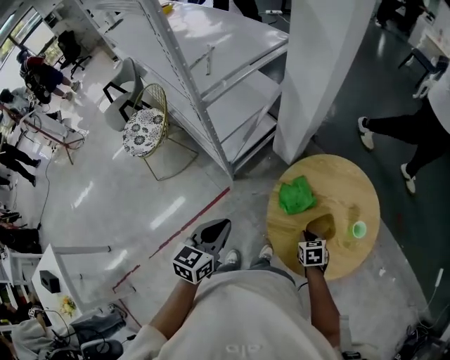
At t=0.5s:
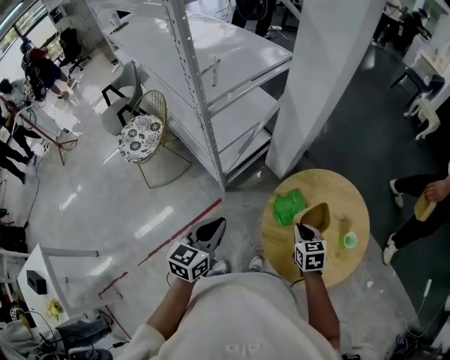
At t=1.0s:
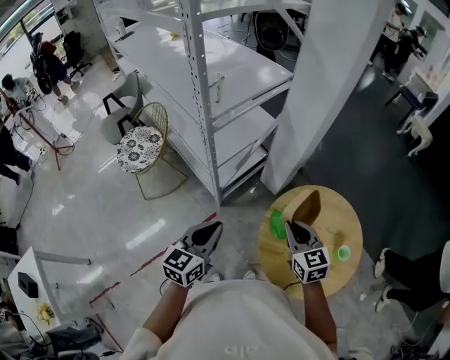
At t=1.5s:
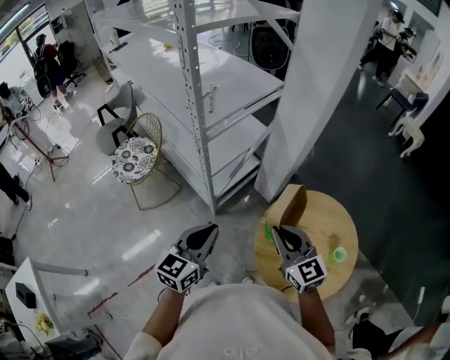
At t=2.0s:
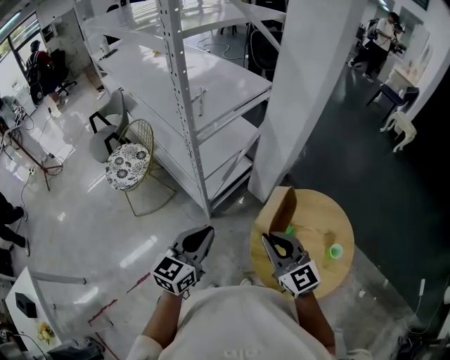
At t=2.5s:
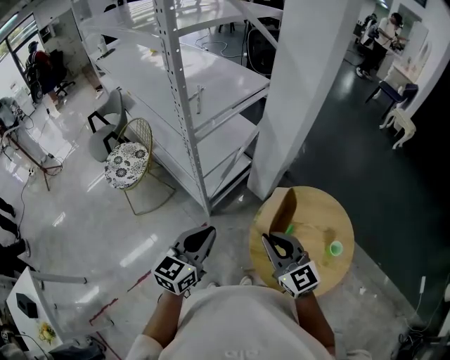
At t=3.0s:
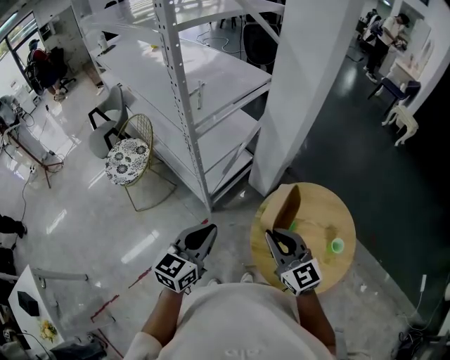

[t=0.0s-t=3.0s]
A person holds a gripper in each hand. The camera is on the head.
t=0.0s to t=1.5s: The left gripper goes some 10 cm upward. Meanwhile the right gripper travels upward and to the left by approximately 35 cm, and points its fingers roughly 50 degrees further upward.
t=1.5s to t=3.0s: The grippers make only small movements.

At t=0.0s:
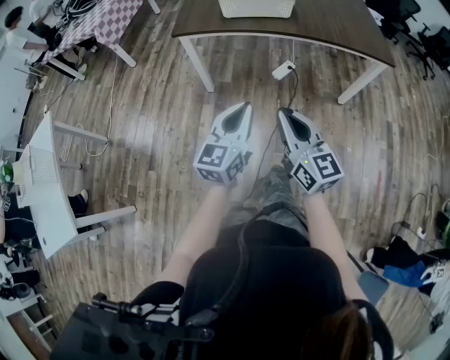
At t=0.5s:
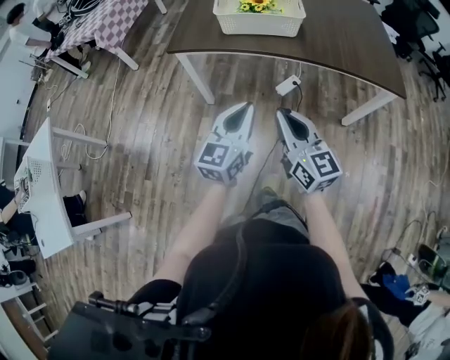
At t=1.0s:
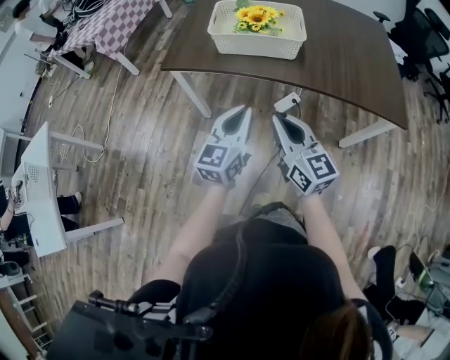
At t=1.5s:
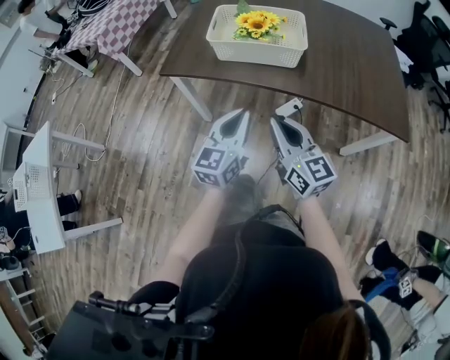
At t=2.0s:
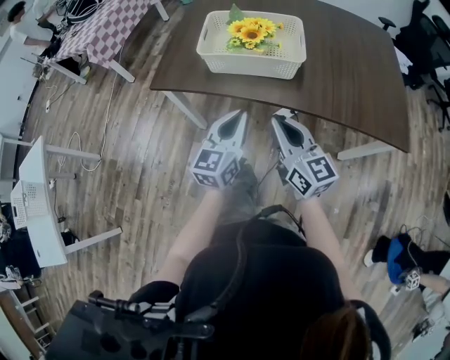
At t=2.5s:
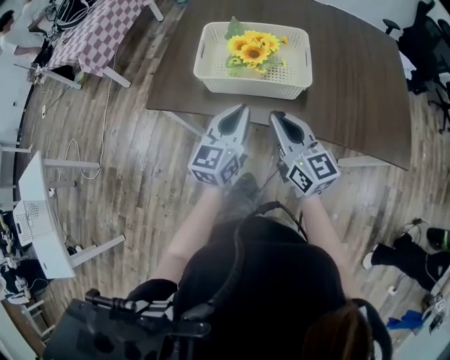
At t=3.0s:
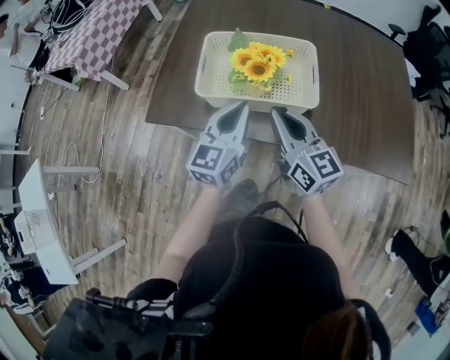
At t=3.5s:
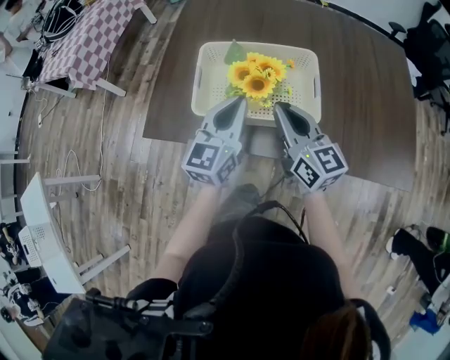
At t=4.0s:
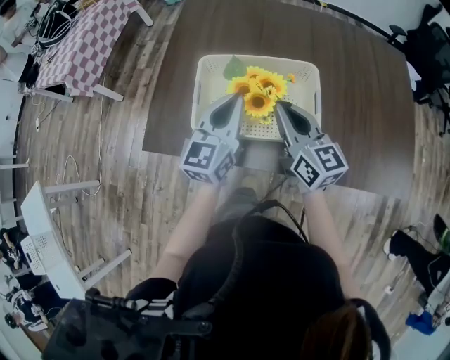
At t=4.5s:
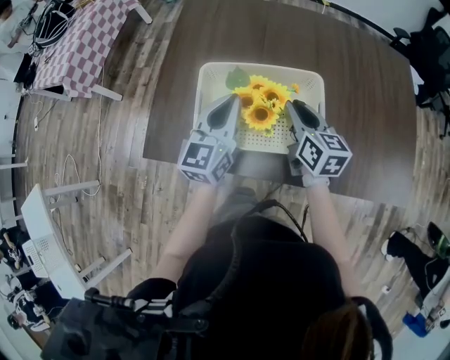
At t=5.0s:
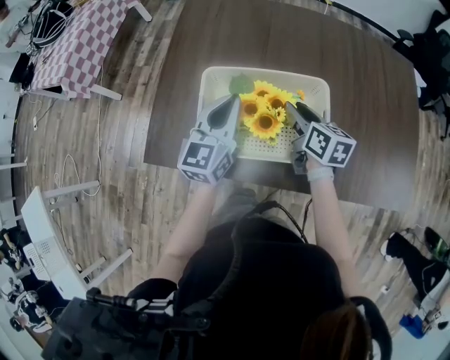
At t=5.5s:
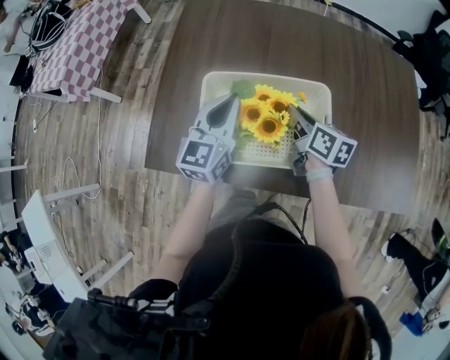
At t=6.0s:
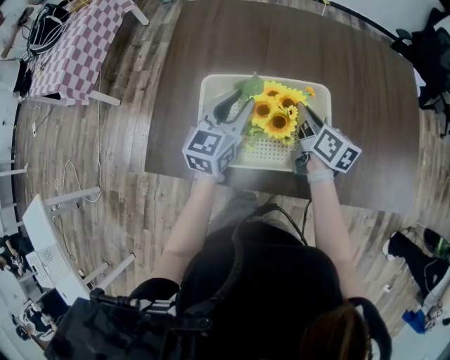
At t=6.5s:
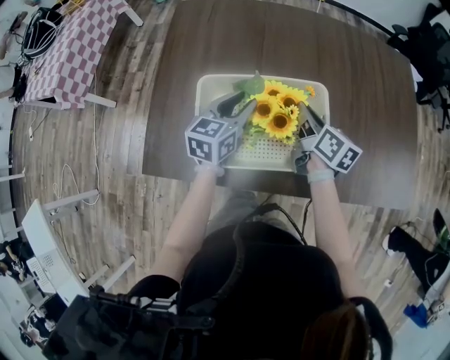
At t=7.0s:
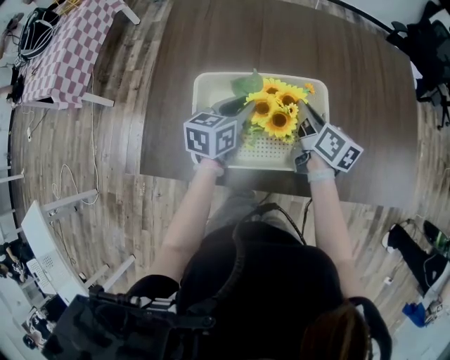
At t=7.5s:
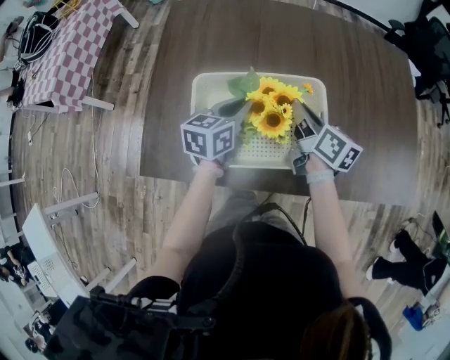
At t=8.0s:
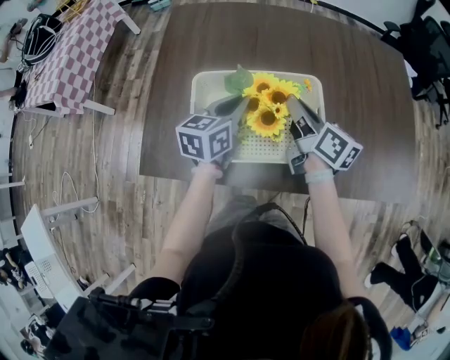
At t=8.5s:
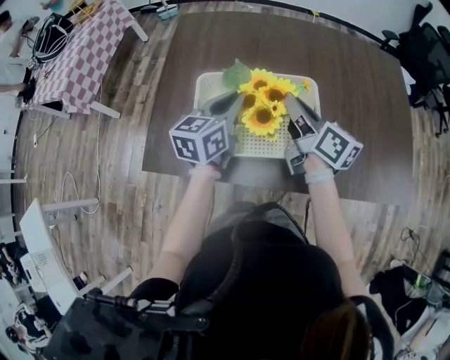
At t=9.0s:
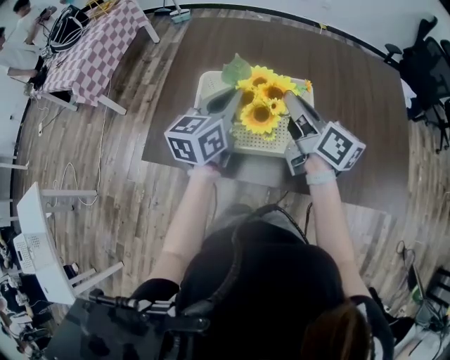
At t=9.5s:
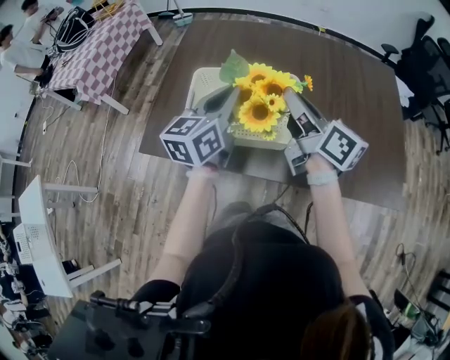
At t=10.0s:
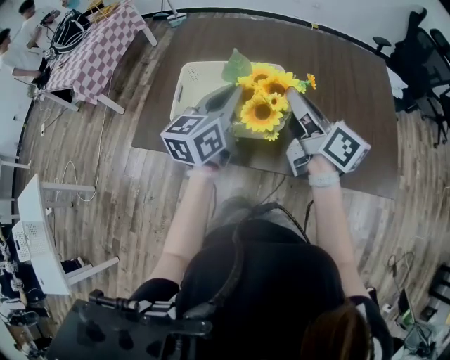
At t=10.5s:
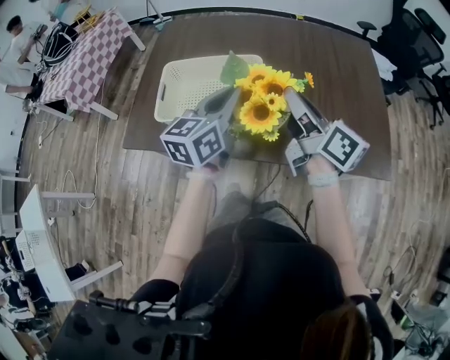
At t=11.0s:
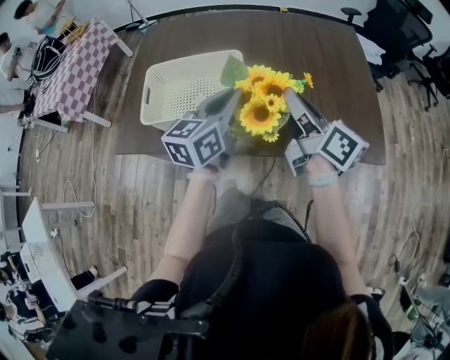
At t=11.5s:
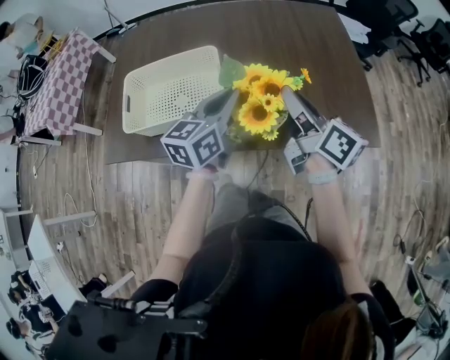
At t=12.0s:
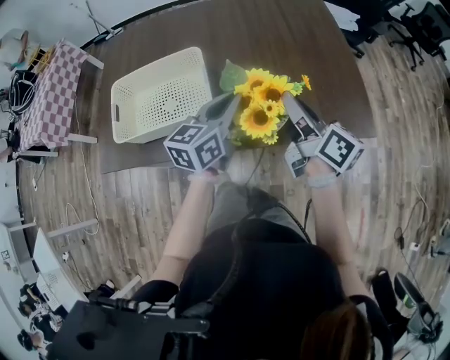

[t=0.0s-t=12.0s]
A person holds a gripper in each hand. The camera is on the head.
t=0.0s to t=2.0s: The grippers both shift forward by approximately 35 cm.
t=2.0s to t=4.0s: Both grippers move forward, some 25 cm.
t=4.0s to t=6.0s: The left gripper shifts about 10 cm forward, and opens up. The right gripper heads forward and downward, covering some 15 cm, rotates about 30 degrees, and opens and closes again.
t=6.0s to t=8.0s: The left gripper closes its fingers.
t=8.0s to t=10.0s: Both grippers travel together upward, backward and to the right, approximately 20 cm.
t=10.0s to t=12.0s: The two grippers go approximately 20 cm to the right.

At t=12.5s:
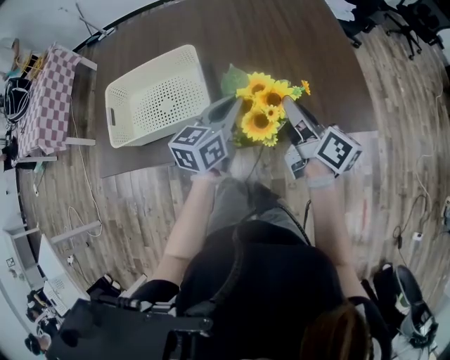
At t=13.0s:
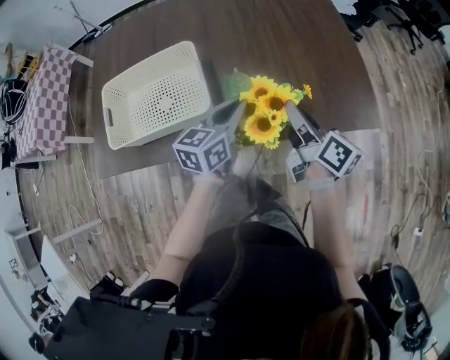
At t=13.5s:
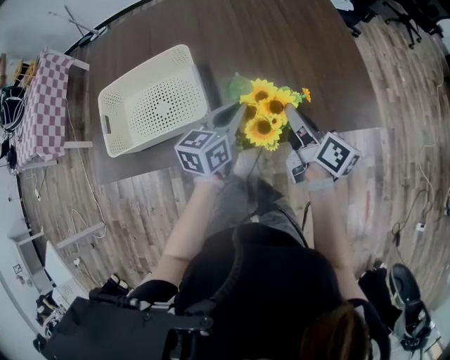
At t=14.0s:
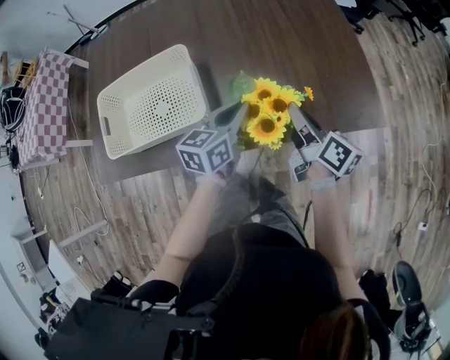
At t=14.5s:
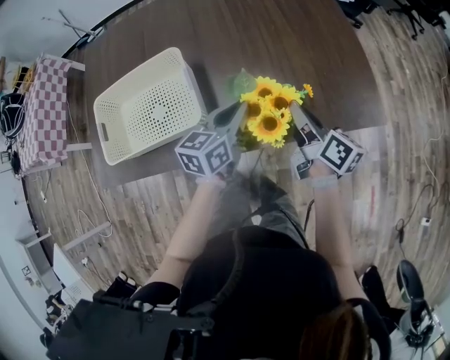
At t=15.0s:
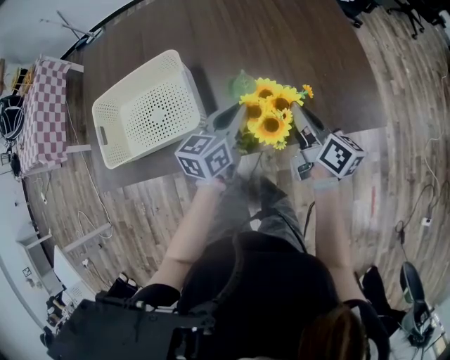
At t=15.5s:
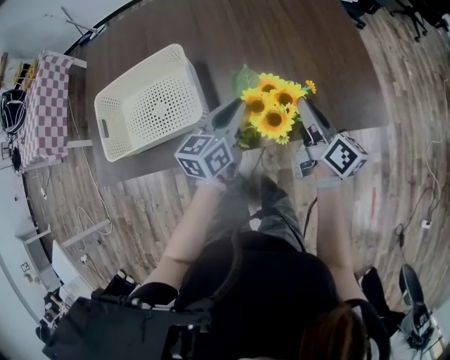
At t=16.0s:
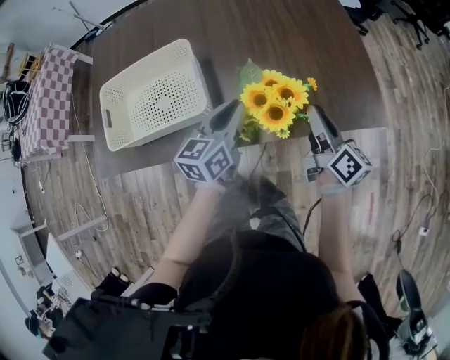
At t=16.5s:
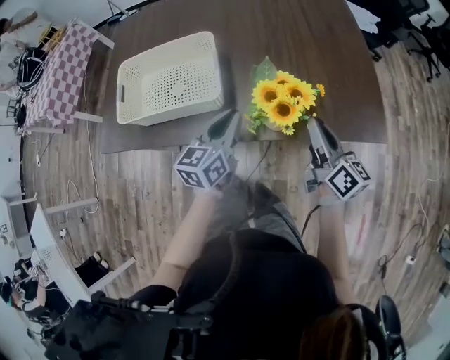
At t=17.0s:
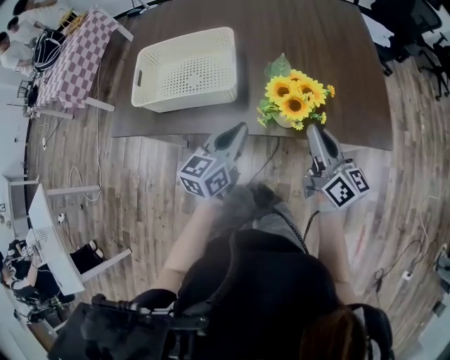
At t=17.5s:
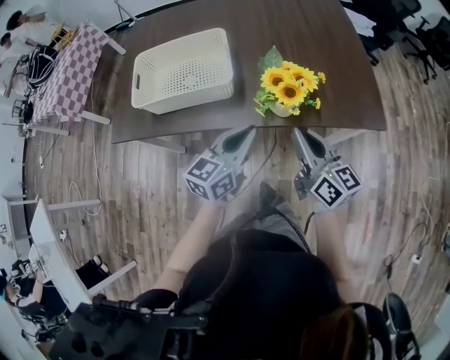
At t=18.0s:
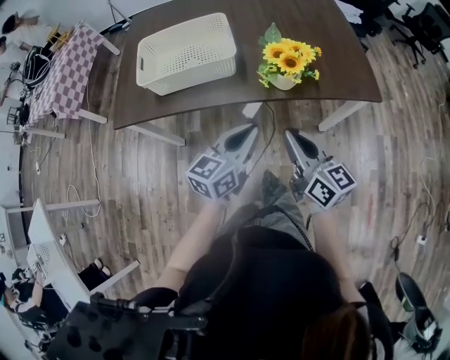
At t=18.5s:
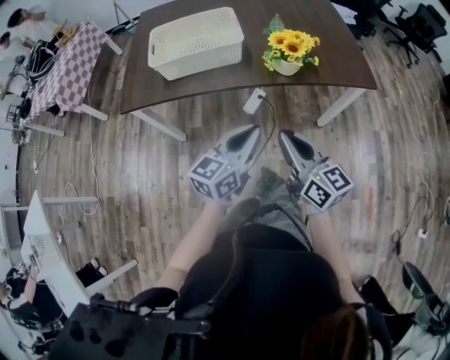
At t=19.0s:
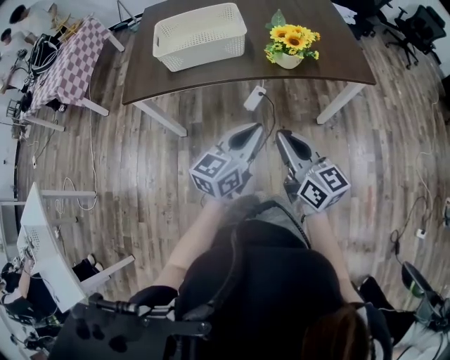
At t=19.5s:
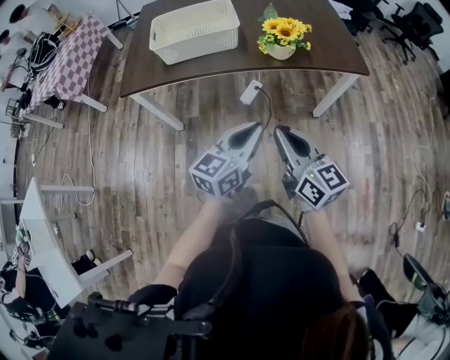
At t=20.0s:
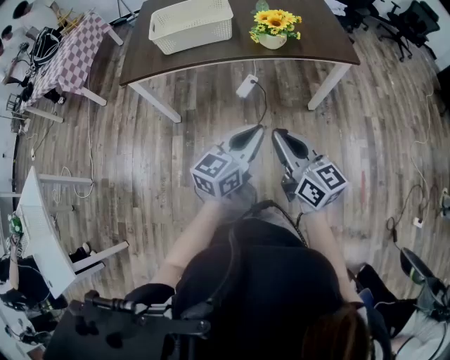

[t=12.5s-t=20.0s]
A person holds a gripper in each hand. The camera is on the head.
t=12.5s to t=14.5s: The grippers both shift downward by some 5 cm.
t=14.5s to t=16.5s: The right gripper travels backward by roughly 5 cm, while the left gripper travels backward and to the left by roughly 10 cm.
t=16.5s to t=18.0s: The right gripper heads backward and to the left, covering roughly 20 cm; the left gripper goes approximately 20 cm backward.
t=18.0s to t=20.0s: Both grippers travel together backward, some 25 cm.

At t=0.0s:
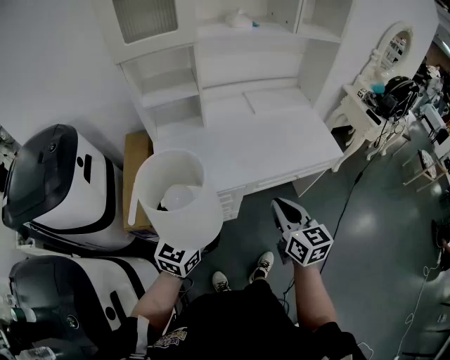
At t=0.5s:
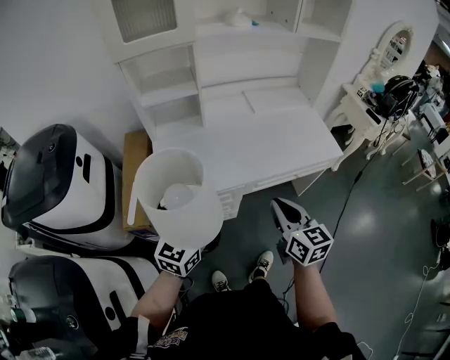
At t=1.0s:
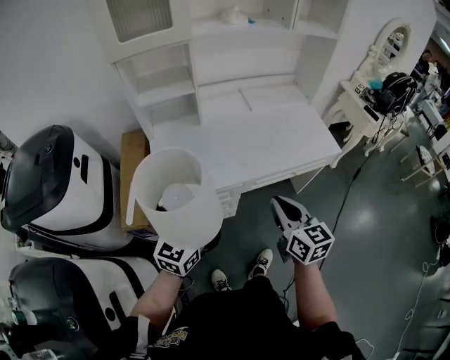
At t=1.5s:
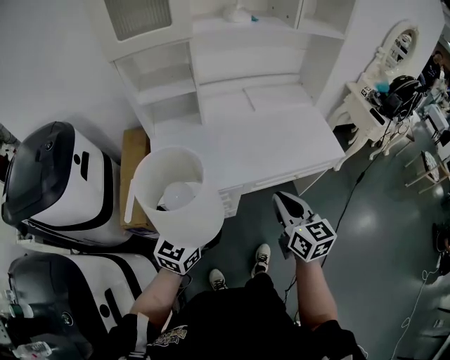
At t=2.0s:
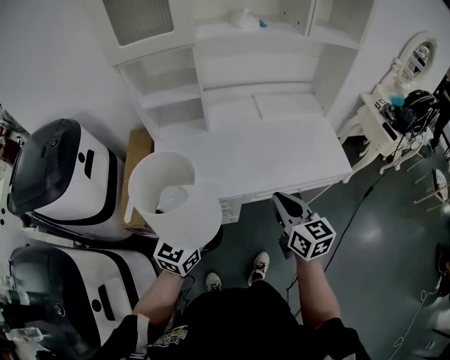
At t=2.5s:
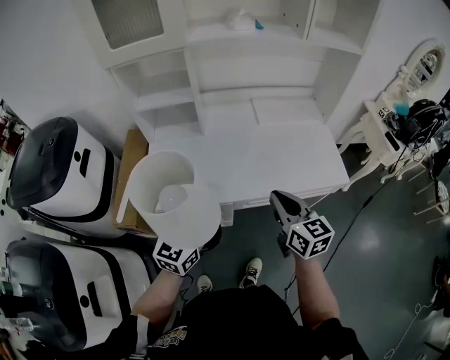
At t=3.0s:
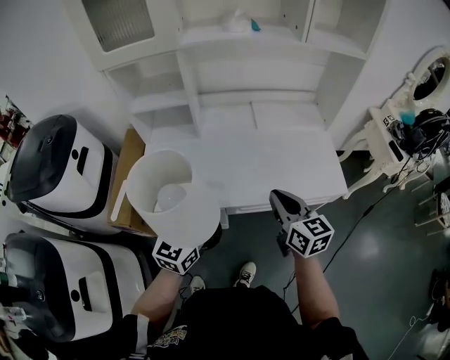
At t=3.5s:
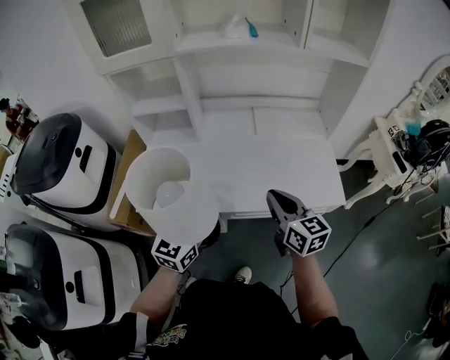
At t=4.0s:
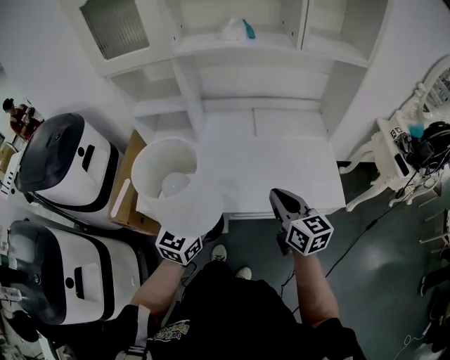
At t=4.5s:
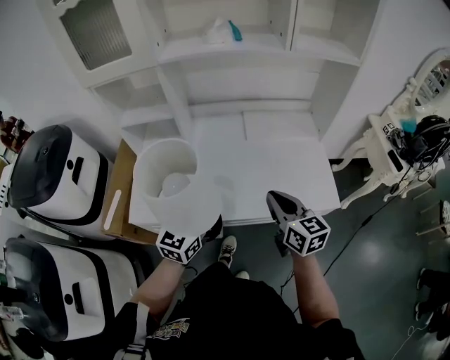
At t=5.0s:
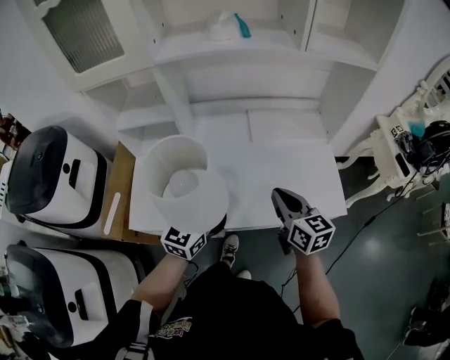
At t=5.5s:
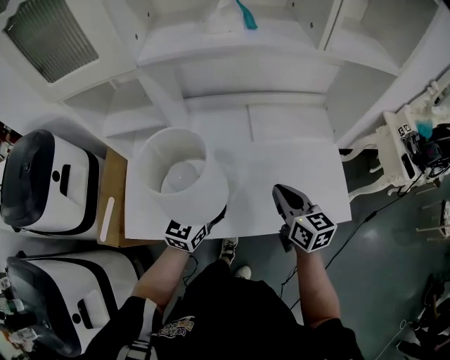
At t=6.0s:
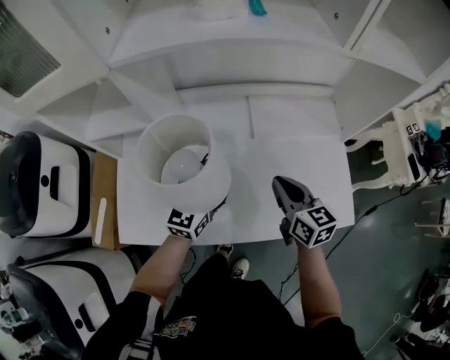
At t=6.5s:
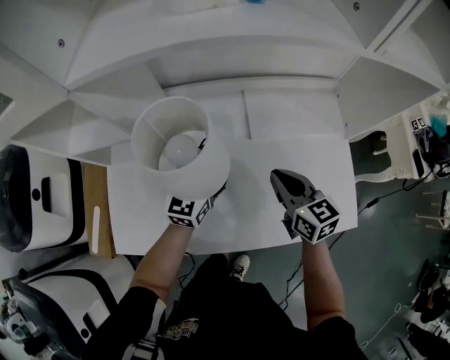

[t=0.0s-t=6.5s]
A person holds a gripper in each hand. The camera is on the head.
t=0.0s to t=2.0s: The right gripper moves forward, some 10 cm. Meanwhile the left gripper heads forward, covering some 5 cm.
t=2.0s to t=4.5s: The grippers both shift to the right and forward by some 20 cm.
t=4.5s to t=6.5s: The left gripper moves forward, some 30 cm. Meanwhile the right gripper moves forward and downward, some 25 cm.
